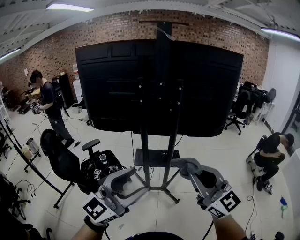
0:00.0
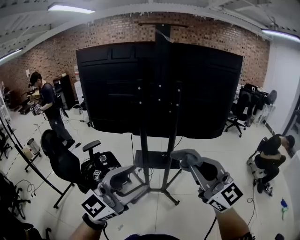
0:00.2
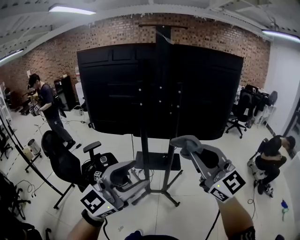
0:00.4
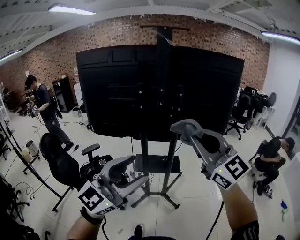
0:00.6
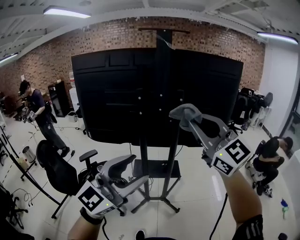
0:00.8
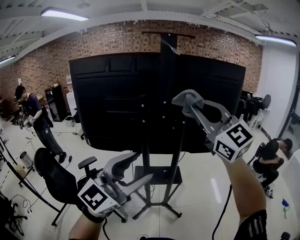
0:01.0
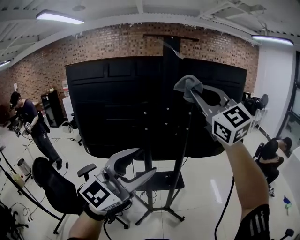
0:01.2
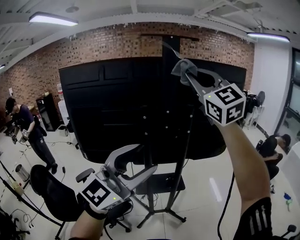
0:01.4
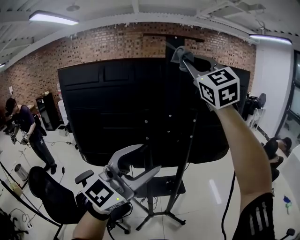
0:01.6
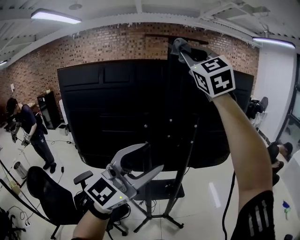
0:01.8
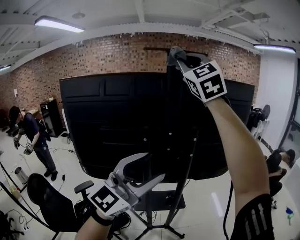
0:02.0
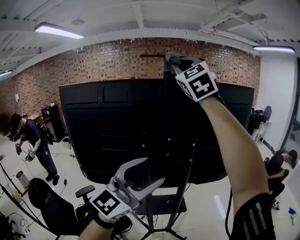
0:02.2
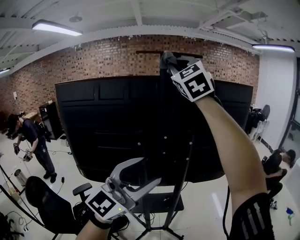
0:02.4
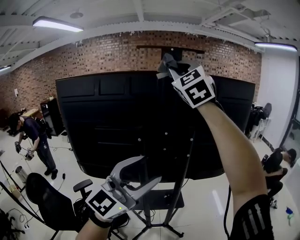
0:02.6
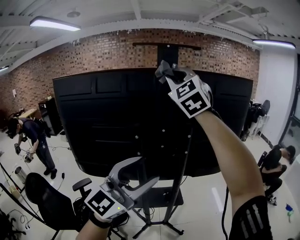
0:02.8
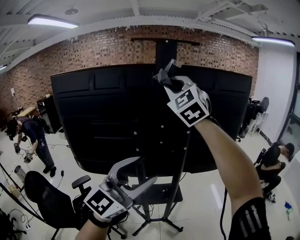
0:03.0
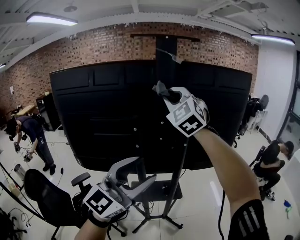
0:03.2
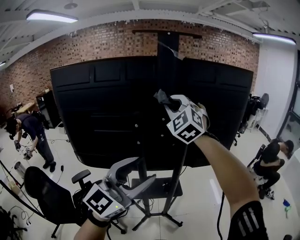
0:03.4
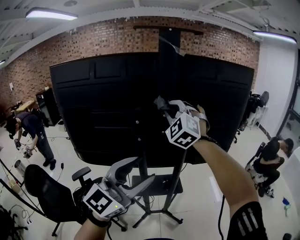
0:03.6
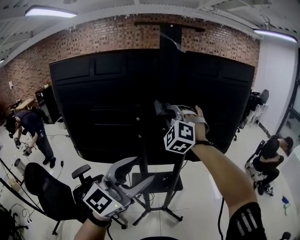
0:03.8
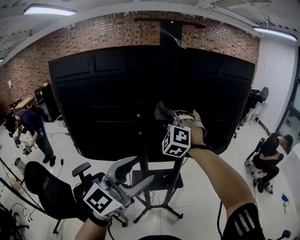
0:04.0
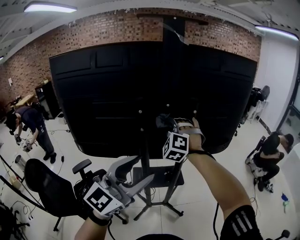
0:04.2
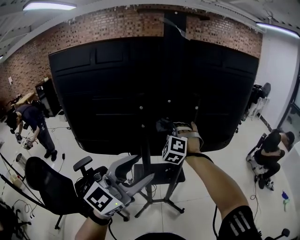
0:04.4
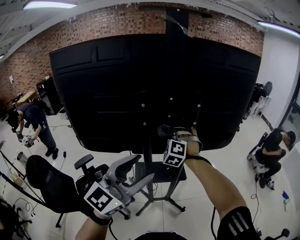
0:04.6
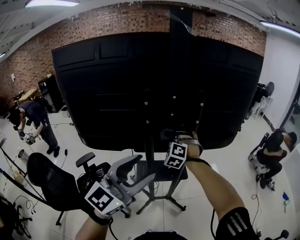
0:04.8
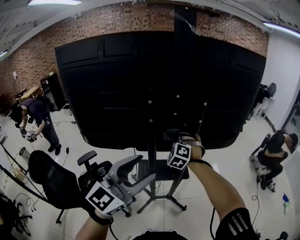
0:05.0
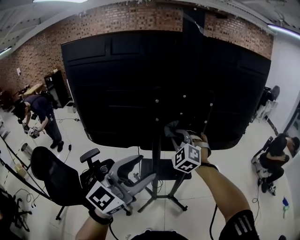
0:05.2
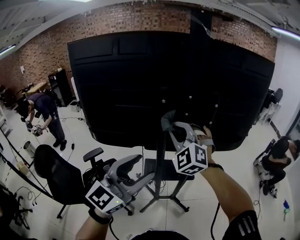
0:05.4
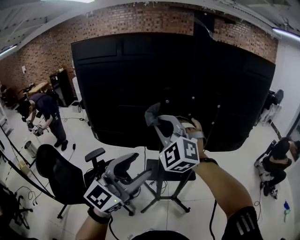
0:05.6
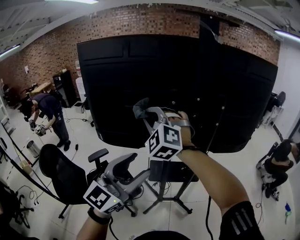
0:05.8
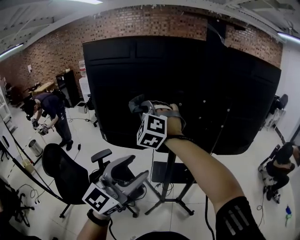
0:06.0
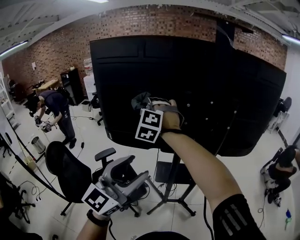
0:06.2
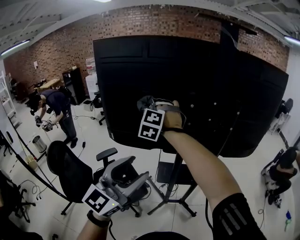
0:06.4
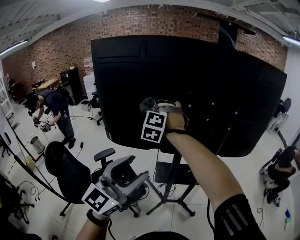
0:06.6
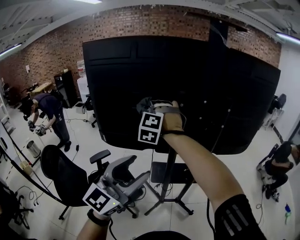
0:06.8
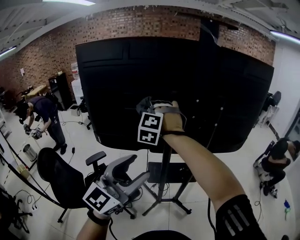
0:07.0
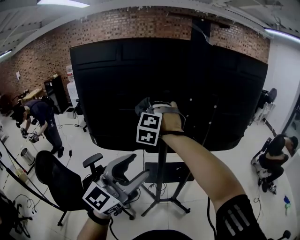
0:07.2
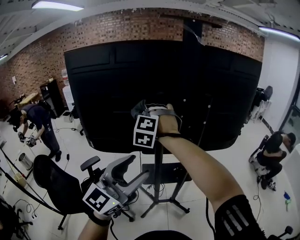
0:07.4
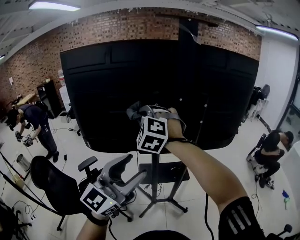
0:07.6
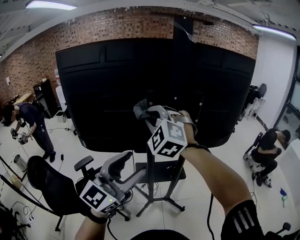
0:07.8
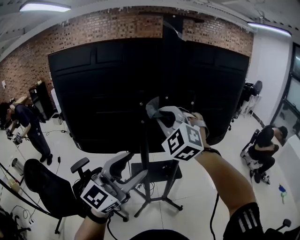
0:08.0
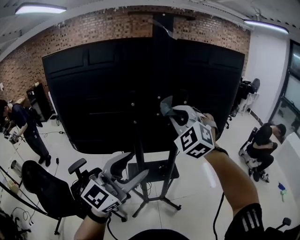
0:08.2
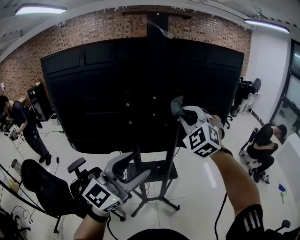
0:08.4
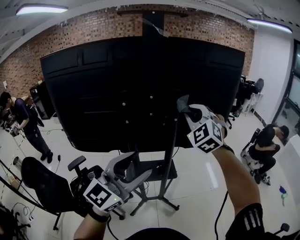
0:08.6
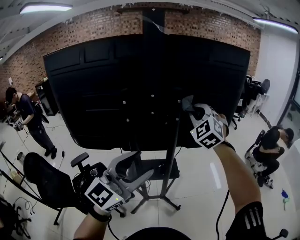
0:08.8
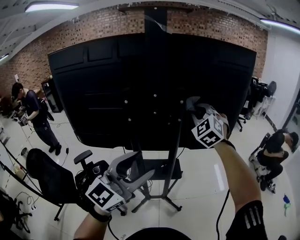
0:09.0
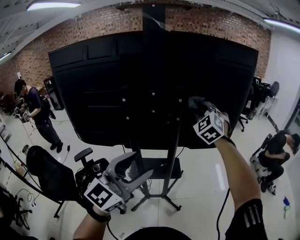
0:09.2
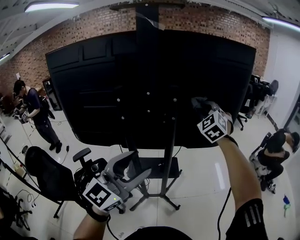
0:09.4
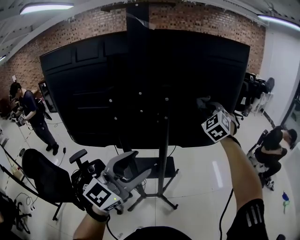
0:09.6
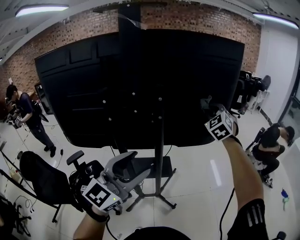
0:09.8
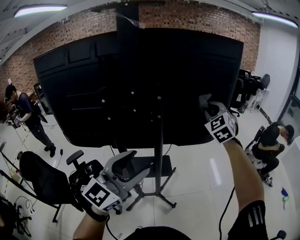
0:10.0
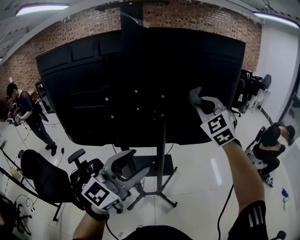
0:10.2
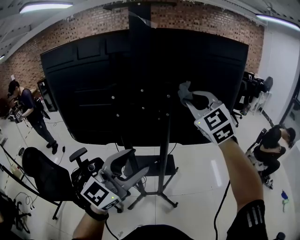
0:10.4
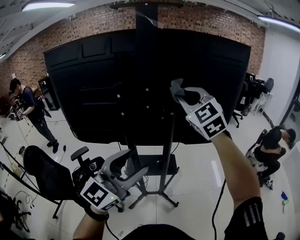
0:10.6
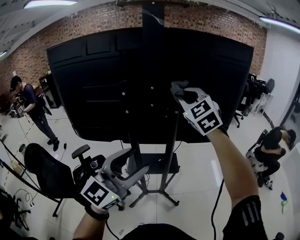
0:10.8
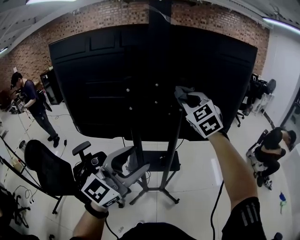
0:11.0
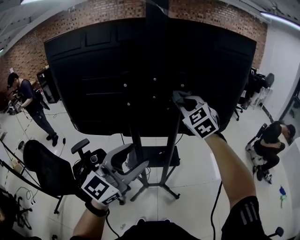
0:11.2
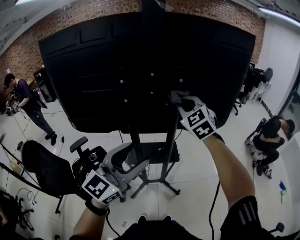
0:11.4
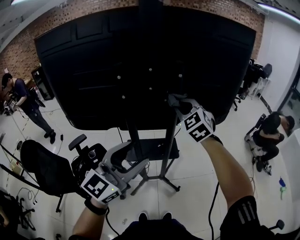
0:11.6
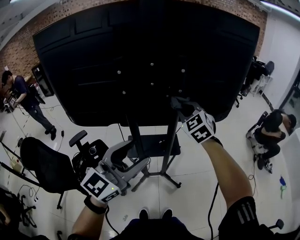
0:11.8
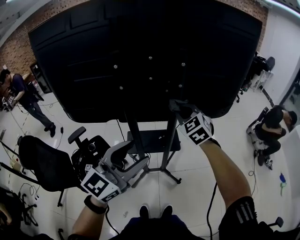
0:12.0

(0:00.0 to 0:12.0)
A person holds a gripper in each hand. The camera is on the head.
0:00.0 - 0:01.6: The left gripper is displaced forward, upward and to the left by some 25 cm; the right gripper is displaced forward and upward by roughly 50 cm, and turns by approximately 40 degrees.
0:01.6 - 0:03.0: The right gripper goes about 10 cm forward, downward and to the left, while the left gripper moves forward, roughly 5 cm.
0:03.0 - 0:04.4: The left gripper travels downward by roughly 5 cm; the right gripper heads downward, covering roughly 35 cm, and swivels roughly 40 degrees.
0:04.4 - 0:06.0: The left gripper travels to the left and backward by about 15 cm, while the right gripper moves to the left, backward and upward, about 30 cm.
0:06.0 - 0:07.6: The right gripper goes approximately 10 cm to the right.
0:07.6 - 0:09.0: The left gripper goes about 15 cm to the right and forward. Meanwhile the right gripper moves to the right and forward, about 35 cm, and swivels approximately 20 degrees.
0:09.0 - 0:10.4: The right gripper shifts about 10 cm upward and backward, and reaches approximately 15 cm to the right, then returns.
0:10.4 - 0:12.0: The left gripper shifts about 10 cm downward and to the left; the right gripper shifts some 25 cm downward, and rotates approximately 20 degrees.

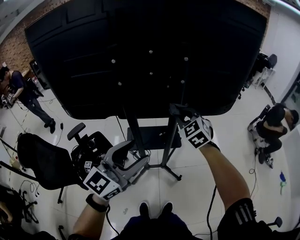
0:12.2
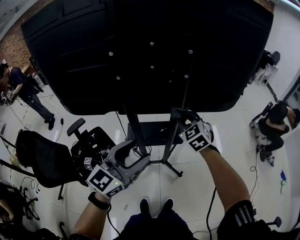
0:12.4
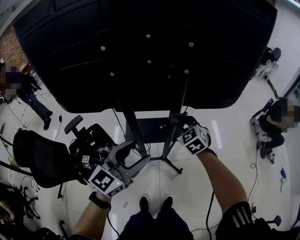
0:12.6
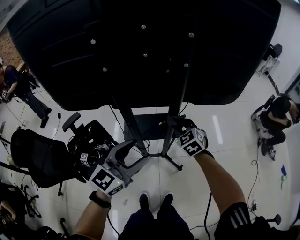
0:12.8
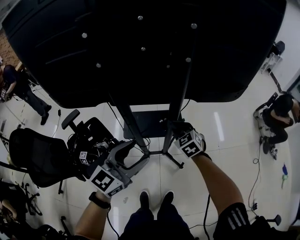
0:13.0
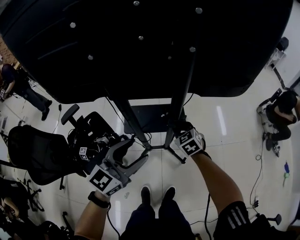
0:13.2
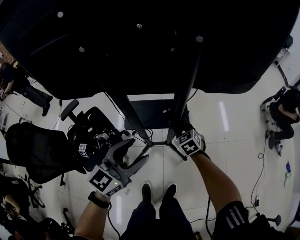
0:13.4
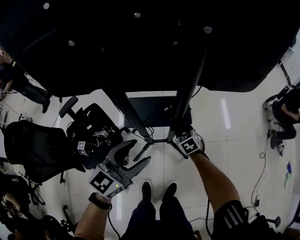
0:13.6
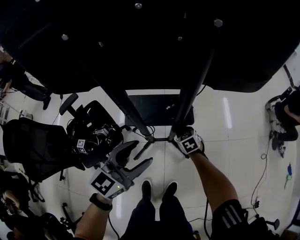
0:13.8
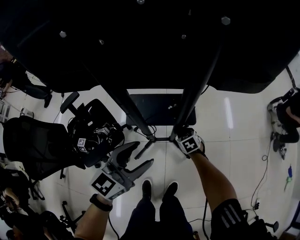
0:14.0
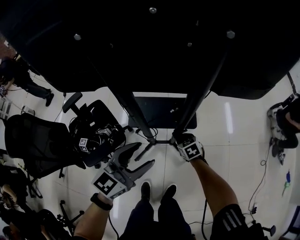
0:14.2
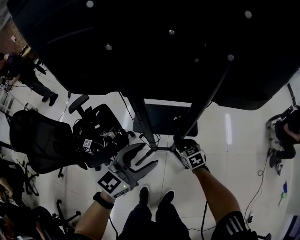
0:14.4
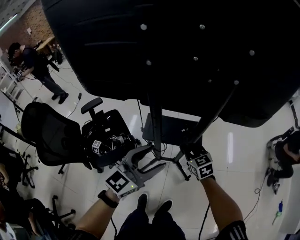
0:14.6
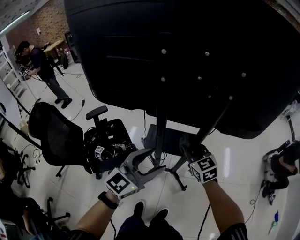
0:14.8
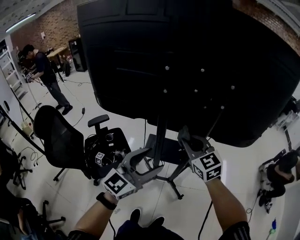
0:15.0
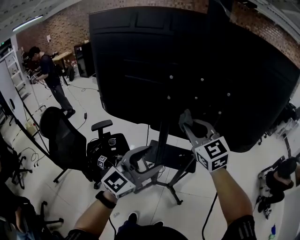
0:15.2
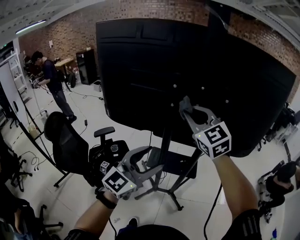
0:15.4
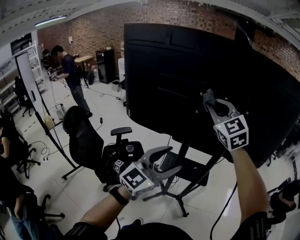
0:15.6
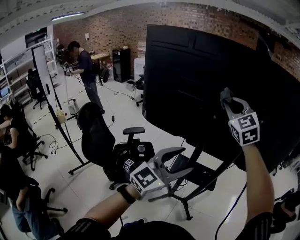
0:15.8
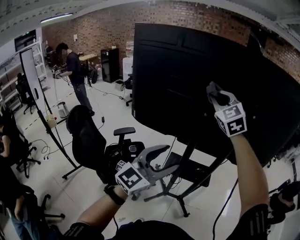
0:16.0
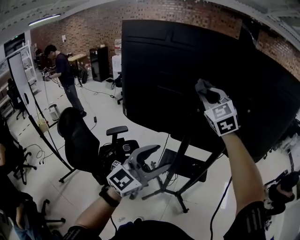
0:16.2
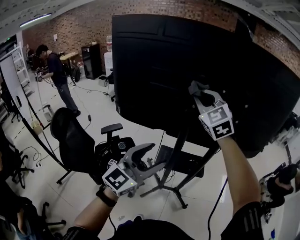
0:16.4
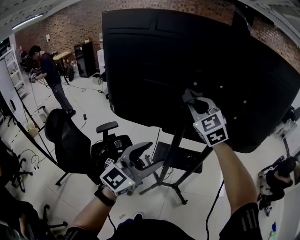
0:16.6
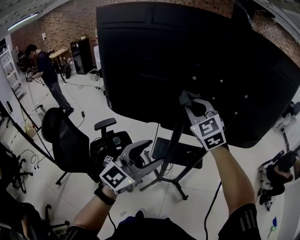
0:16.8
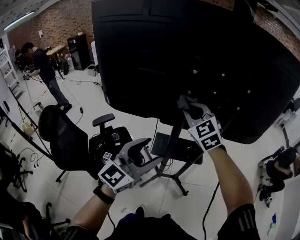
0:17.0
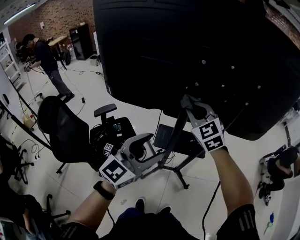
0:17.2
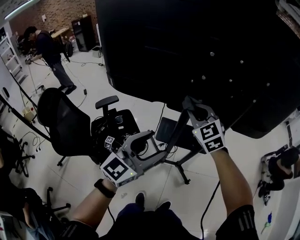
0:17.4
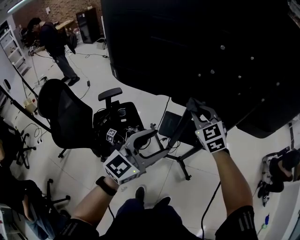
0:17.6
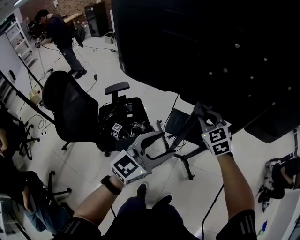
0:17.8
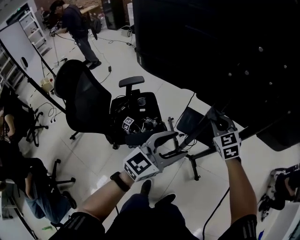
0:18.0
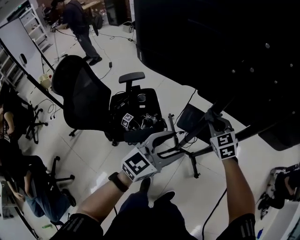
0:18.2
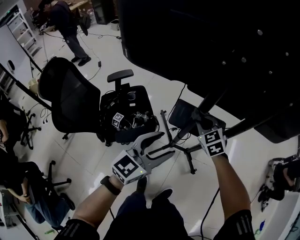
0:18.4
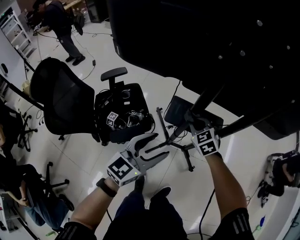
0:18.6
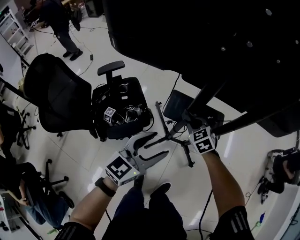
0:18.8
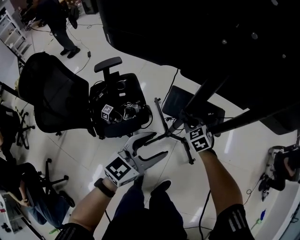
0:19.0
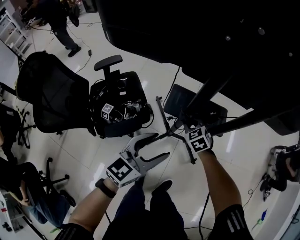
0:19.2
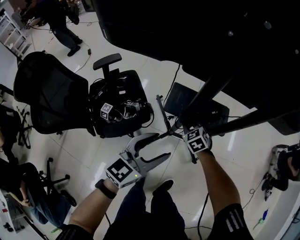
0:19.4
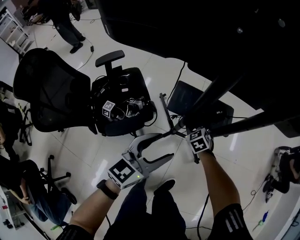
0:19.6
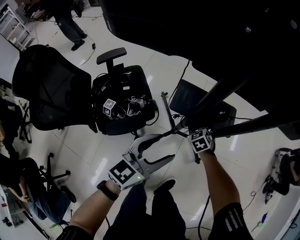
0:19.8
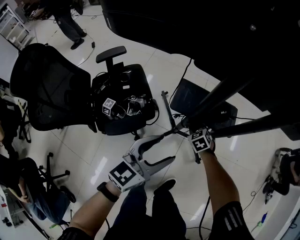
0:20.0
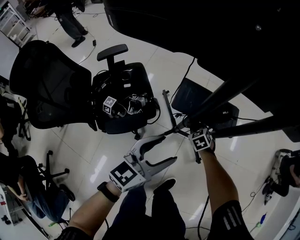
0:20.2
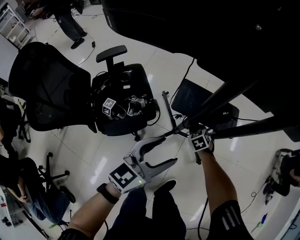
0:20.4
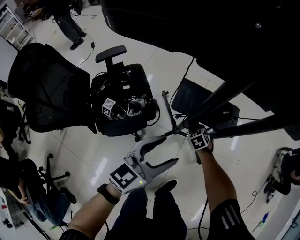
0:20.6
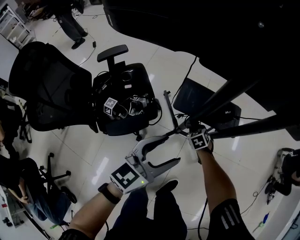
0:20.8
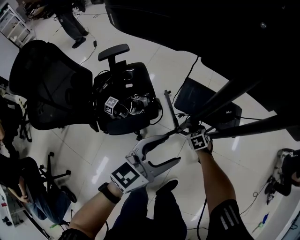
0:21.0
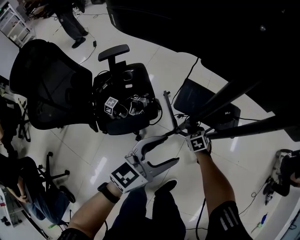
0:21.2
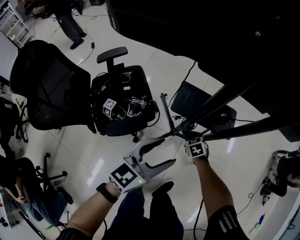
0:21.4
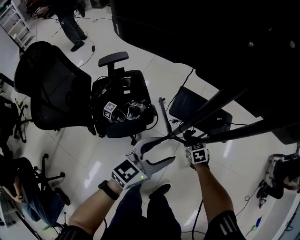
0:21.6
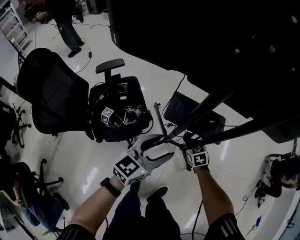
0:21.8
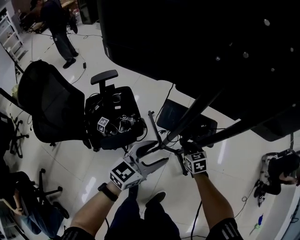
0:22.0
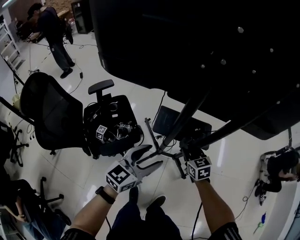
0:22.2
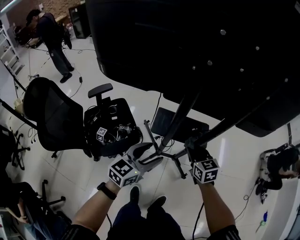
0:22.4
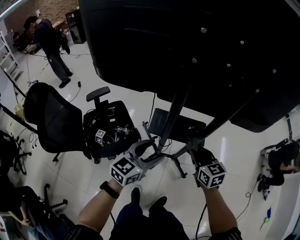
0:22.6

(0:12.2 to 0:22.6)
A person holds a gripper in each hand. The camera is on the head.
0:12.2 - 0:13.6: The right gripper heads downward, covering some 40 cm, and turns by roughly 30 degrees. Meanwhile the left gripper heads downward, covering approximately 20 cm.
0:13.6 - 0:15.2: The left gripper is displaced upward by approximately 20 cm, and changes its angle by roughly 20 degrees. Meanwhile the right gripper is displaced upward by approximately 50 cm, and tips its fingers upward by some 40 degrees.
0:15.2 - 0:16.6: The right gripper travels to the left, forward and upward by roughly 10 cm; the left gripper moves to the left, about 10 cm.
0:16.6 - 0:18.2: The left gripper travels downward by some 20 cm. The right gripper travels downward by some 35 cm, and swivels about 30 degrees.
0:18.2 - 0:19.6: The left gripper heads downward, covering about 15 cm, while the right gripper heads downward, covering roughly 30 cm, and turns by roughly 20 degrees.
0:19.6 - 0:21.2: The right gripper moves downward, roughly 10 cm.
0:21.2 - 0:22.6: The right gripper moves upward, about 40 cm, and tilts its fingers roughly 30 degrees upward. The left gripper shifts about 10 cm upward and to the right.

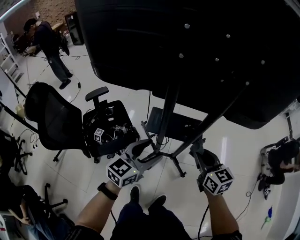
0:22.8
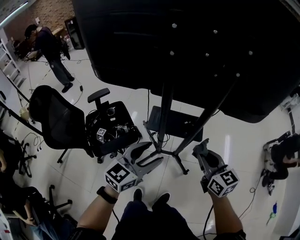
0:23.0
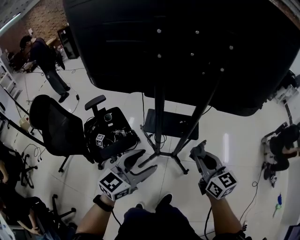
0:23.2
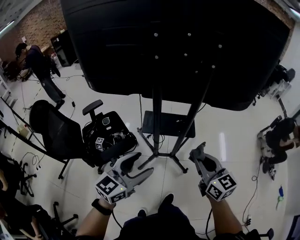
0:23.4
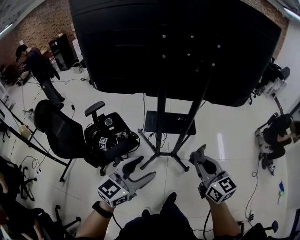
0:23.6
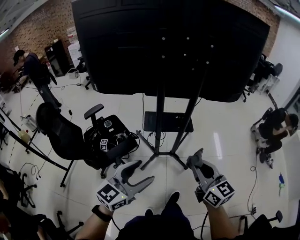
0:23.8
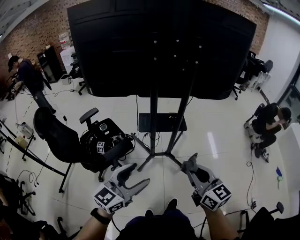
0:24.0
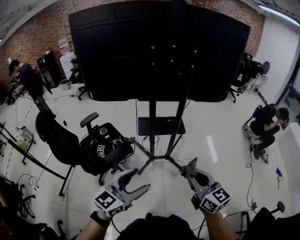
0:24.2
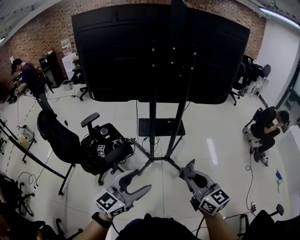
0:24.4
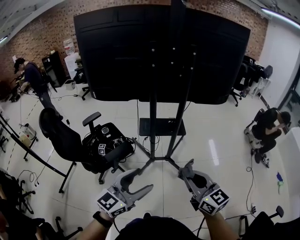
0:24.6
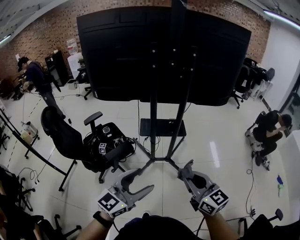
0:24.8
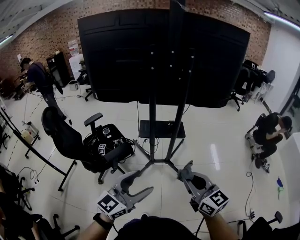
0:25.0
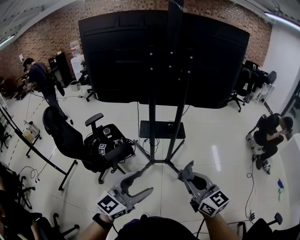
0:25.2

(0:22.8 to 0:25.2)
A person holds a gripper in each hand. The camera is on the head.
0:22.8 - 0:24.0: The two grippers go roughly 30 cm backward.
0:24.0 - 0:25.2: The right gripper is displaced backward by approximately 5 cm. The left gripper moves to the right and backward, approximately 10 cm.
